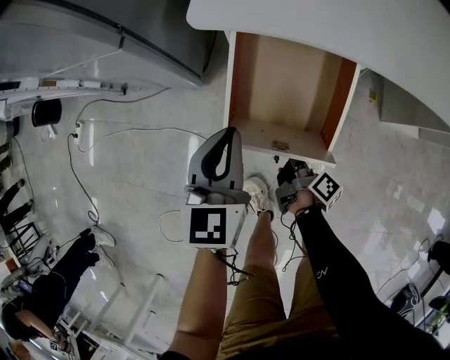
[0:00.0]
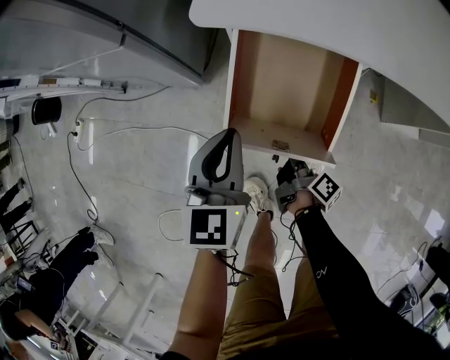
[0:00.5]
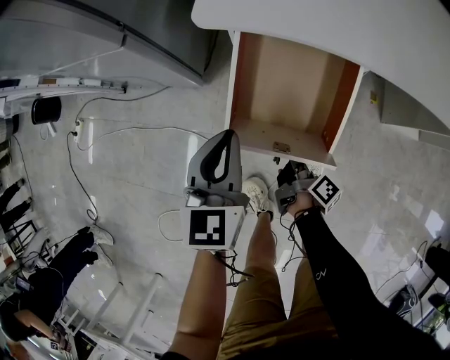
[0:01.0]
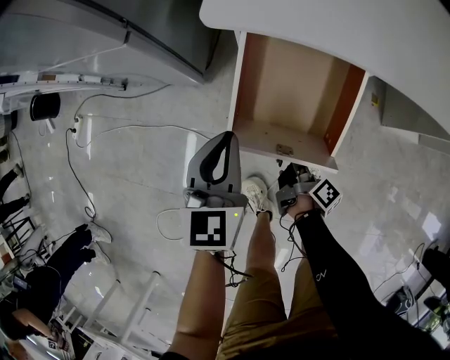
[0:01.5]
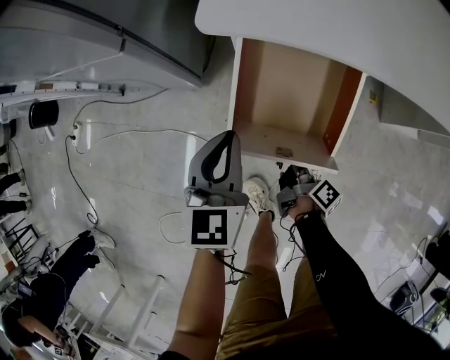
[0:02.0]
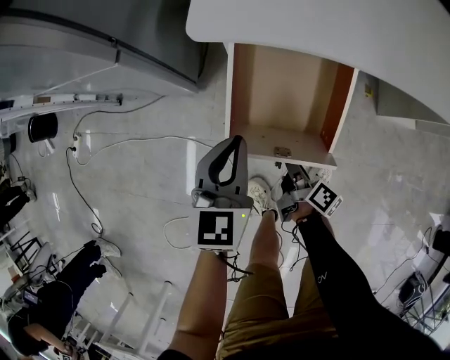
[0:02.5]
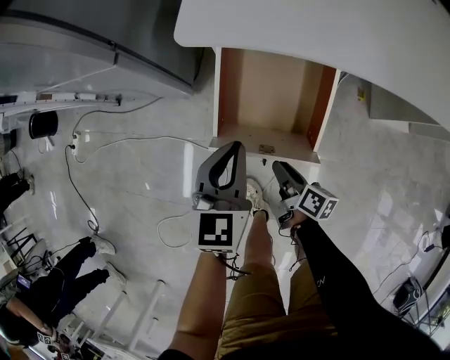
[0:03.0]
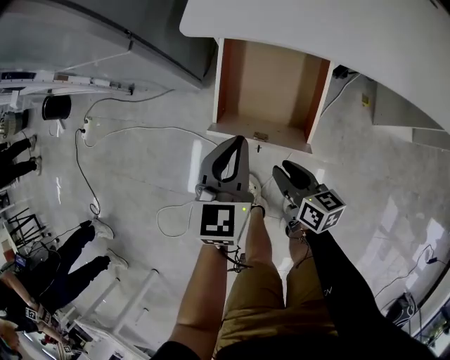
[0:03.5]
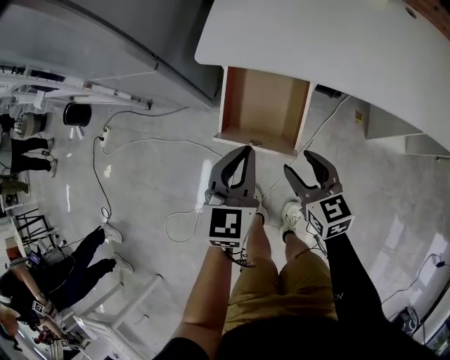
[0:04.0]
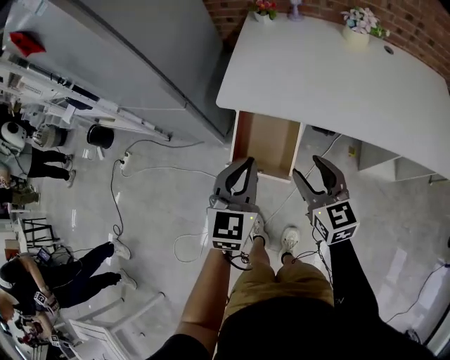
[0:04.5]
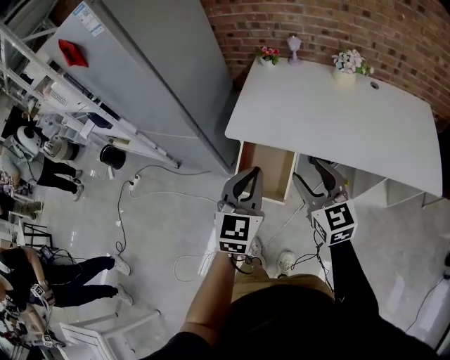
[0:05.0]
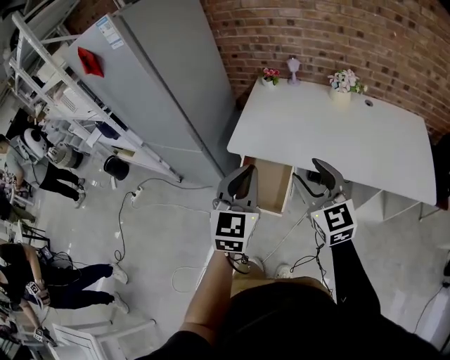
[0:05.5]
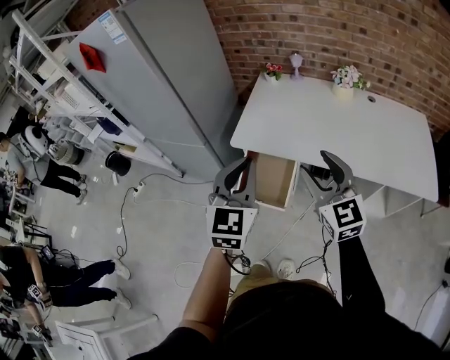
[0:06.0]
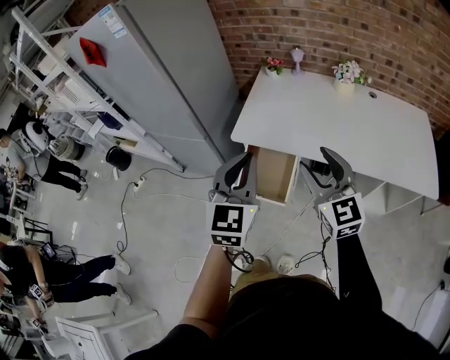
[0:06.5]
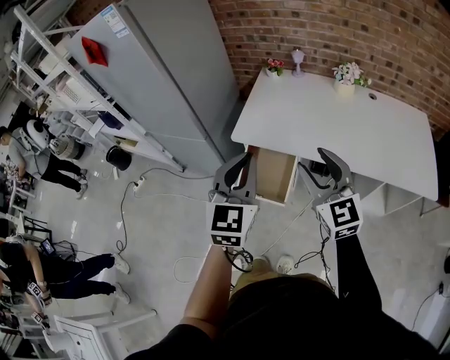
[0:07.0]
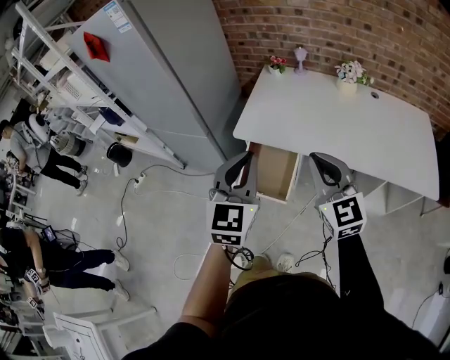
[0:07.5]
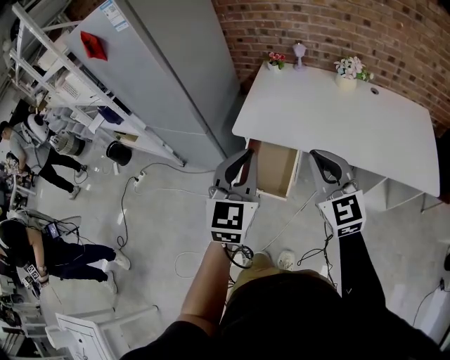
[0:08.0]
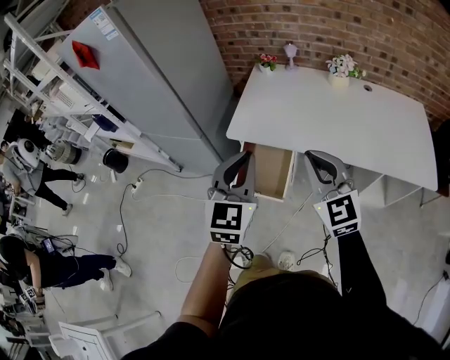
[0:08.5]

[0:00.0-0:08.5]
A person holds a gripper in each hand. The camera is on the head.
0:00.0 to 0:02.0: The grippers make only small movements.
0:02.0 to 0:04.0: The left gripper is displaced upward, to the right and backward by roughly 20 cm. Meanwhile the right gripper goes roughly 25 cm upward, rolls counterclockwise, seen from behind, by about 80 degrees, and opens up.
0:04.0 to 0:06.5: Both grippers travel together upward, about 40 cm. The right gripper changes its angle by roughly 30 degrees.
0:06.5 to 0:08.5: The right gripper closes up.

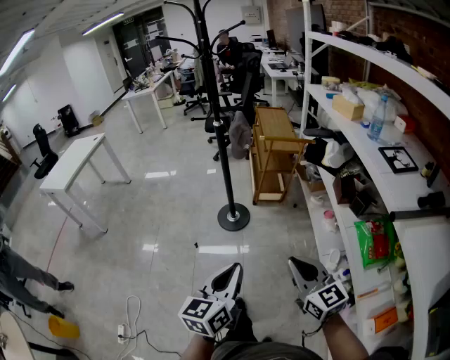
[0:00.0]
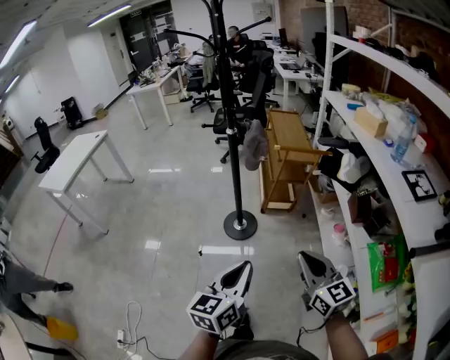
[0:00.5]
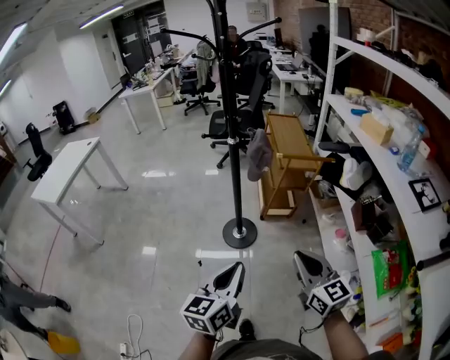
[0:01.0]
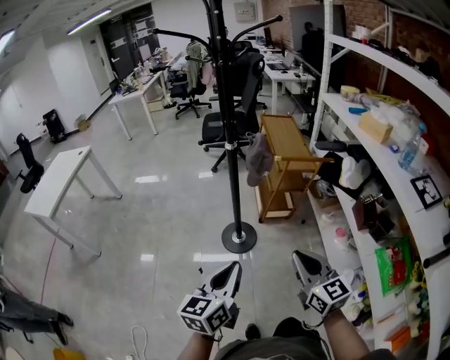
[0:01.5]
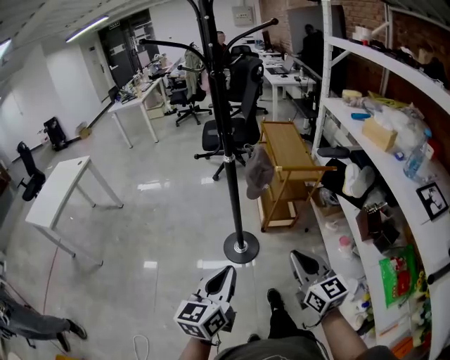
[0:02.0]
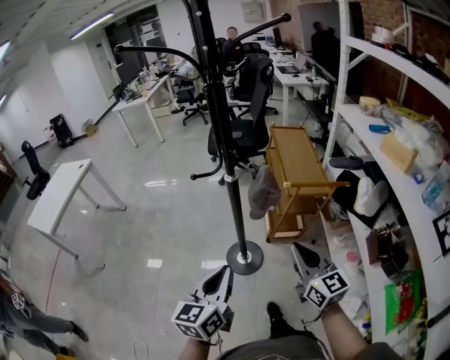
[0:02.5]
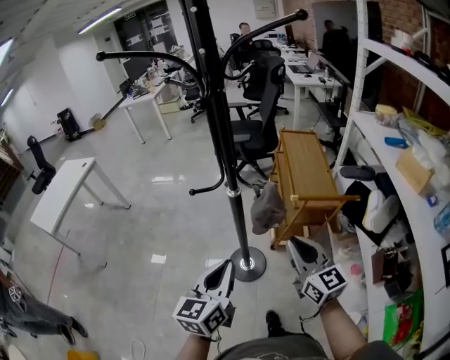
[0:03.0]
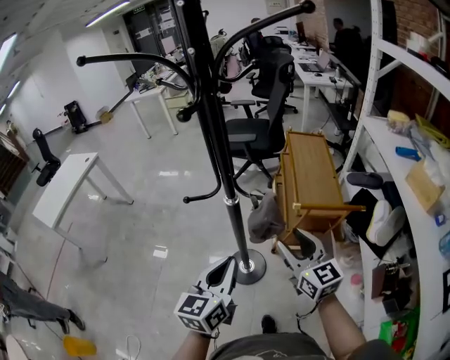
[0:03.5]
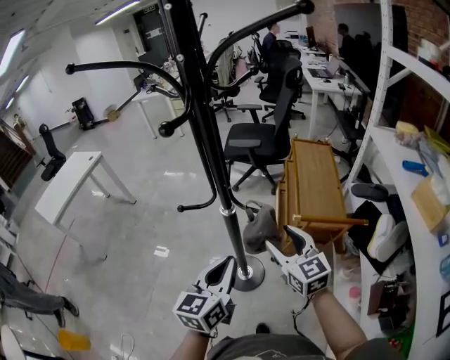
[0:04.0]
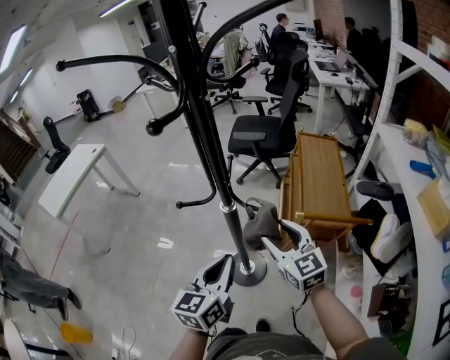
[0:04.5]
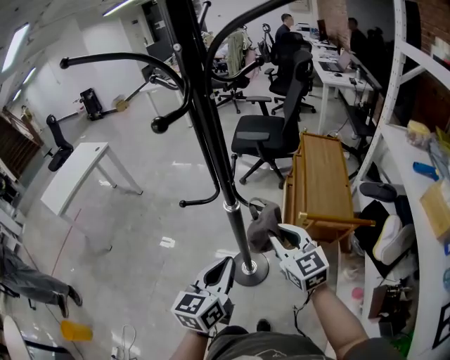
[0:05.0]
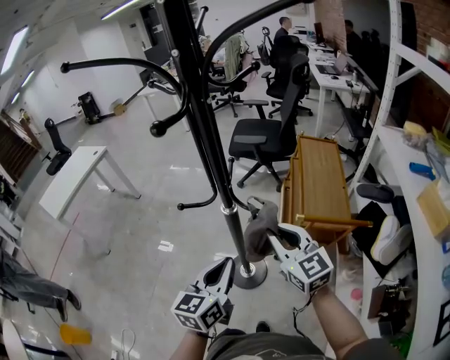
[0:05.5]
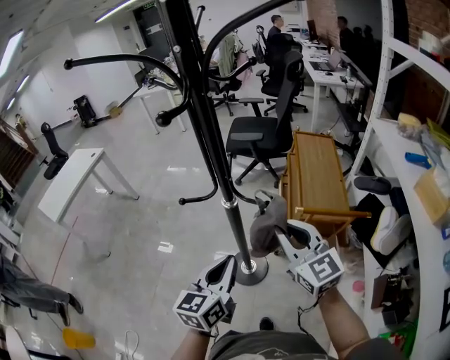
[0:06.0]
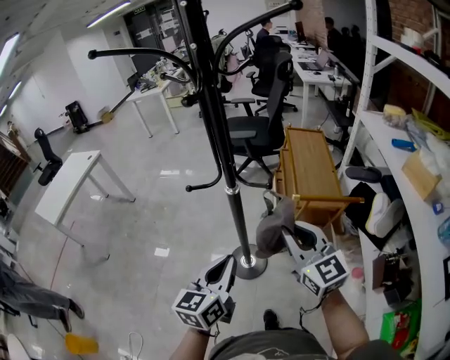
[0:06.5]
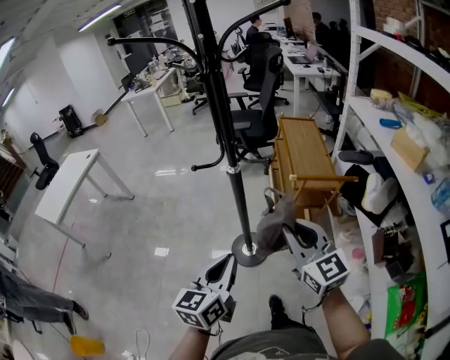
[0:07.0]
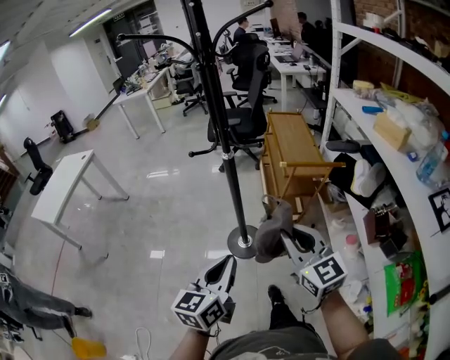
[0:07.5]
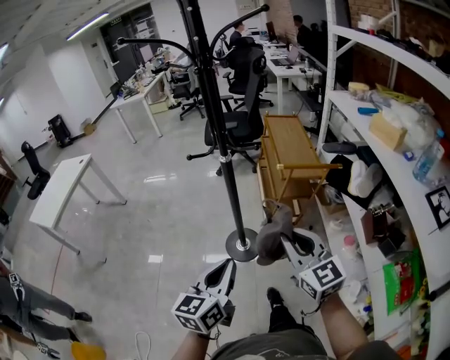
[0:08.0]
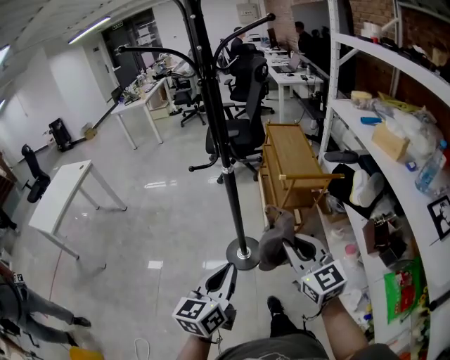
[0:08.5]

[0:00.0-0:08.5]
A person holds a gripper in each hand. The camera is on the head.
0:00.0 to 0:02.0: The two grippers go about 30 cm forward.
0:02.0 to 0:04.0: The two grippers go approximately 30 cm forward. The right gripper opens.
0:04.0 to 0:06.5: The left gripper moves backward, roughly 5 cm; the right gripper shifts roughly 10 cm backward and upward, and closes up.
0:06.5 to 0:08.5: The two grippers go roughly 15 cm backward.

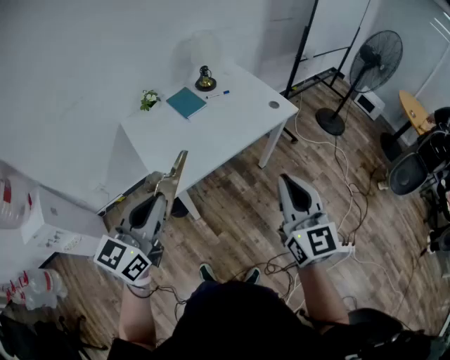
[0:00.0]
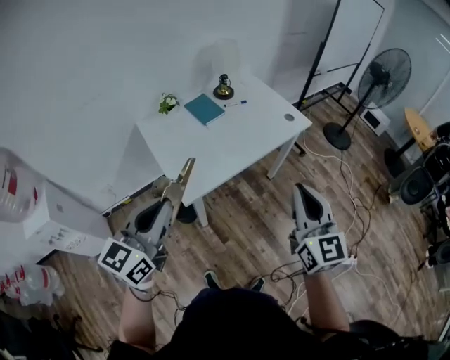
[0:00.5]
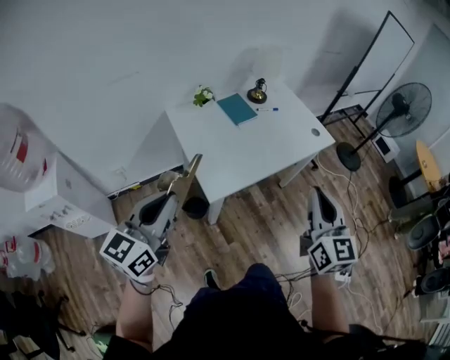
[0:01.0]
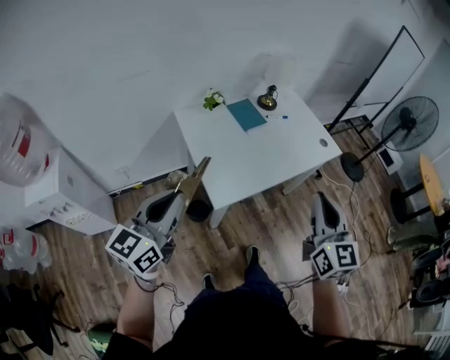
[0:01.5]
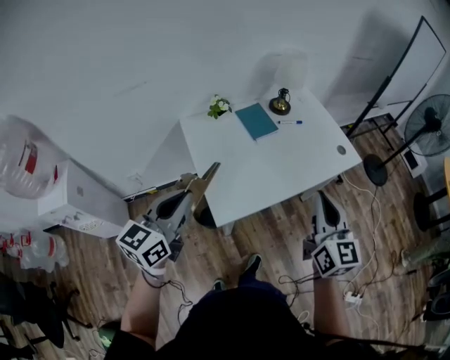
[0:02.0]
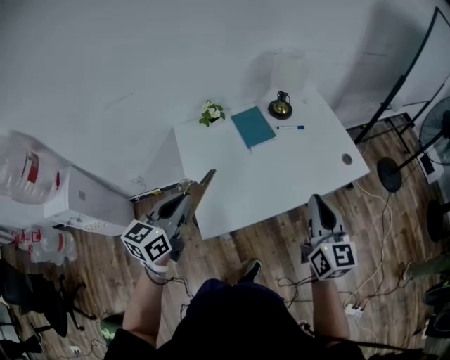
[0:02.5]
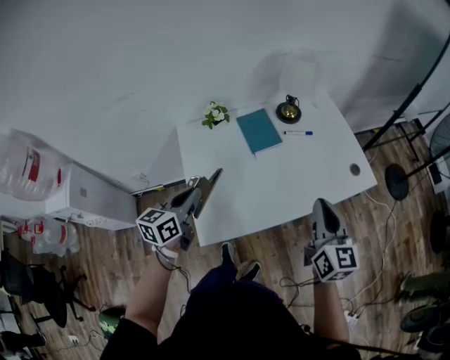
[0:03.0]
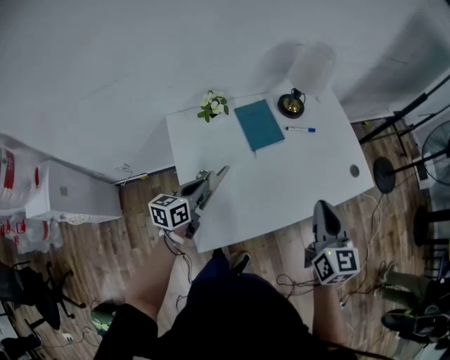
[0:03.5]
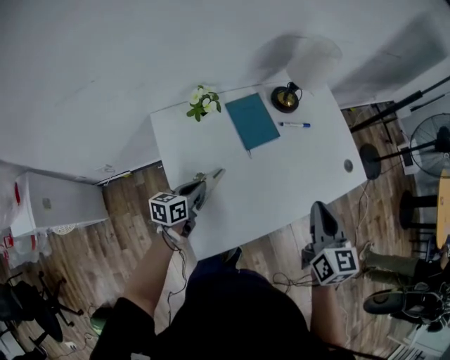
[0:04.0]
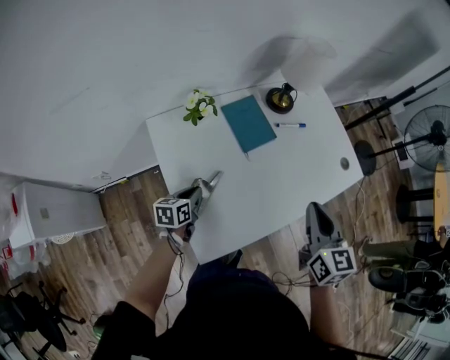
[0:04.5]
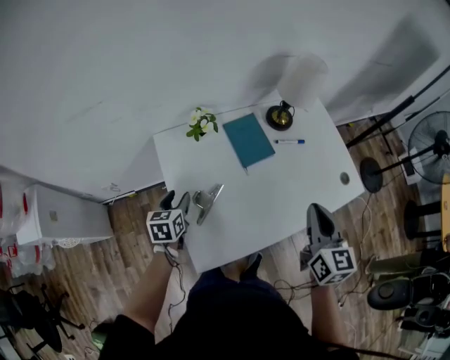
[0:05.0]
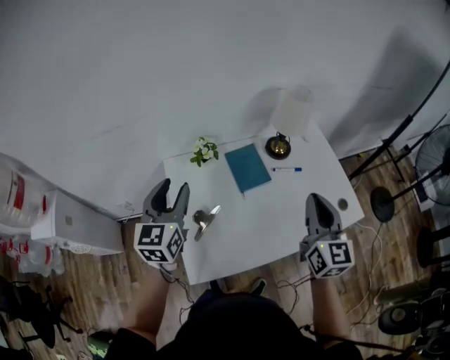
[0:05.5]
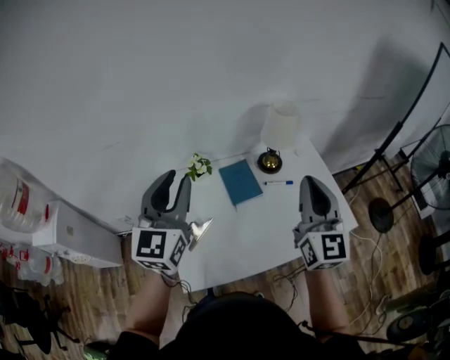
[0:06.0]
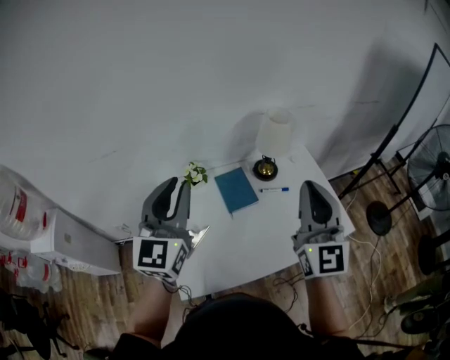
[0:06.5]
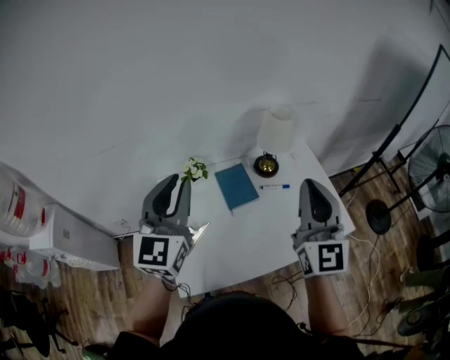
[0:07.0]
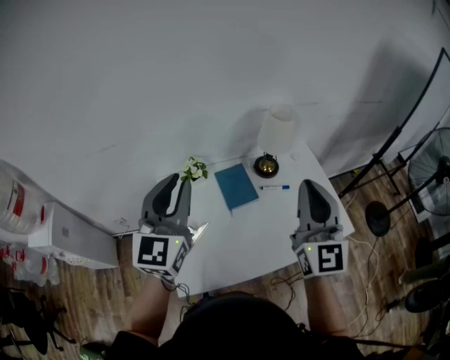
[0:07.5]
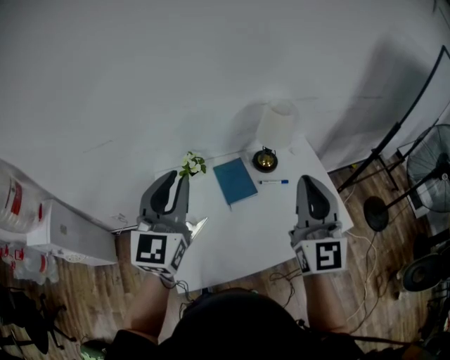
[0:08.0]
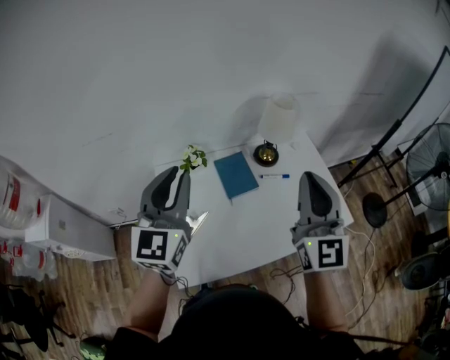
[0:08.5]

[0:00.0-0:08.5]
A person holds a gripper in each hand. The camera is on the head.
0:00.0 to 0:02.0: The left gripper shifts roughly 20 cm to the left and forward; the right gripper heads forward and to the left, covering about 20 cm.
0:02.0 to 0:04.0: The right gripper heads forward and downward, covering some 25 cm, and rotates approximately 20 degrees. Meanwhile the left gripper moves downward and forward, approximately 40 cm, and turns by some 40 degrees.
0:04.0 to 0:06.5: The left gripper is displaced upward by approximately 50 cm, tilts its fingers some 30 degrees upward, and opens, then closes once more; the right gripper goes roughly 25 cm upward, and tilts its fingers approximately 40 degrees upward.
0:06.5 to 0:08.5: The grippers move only a little.

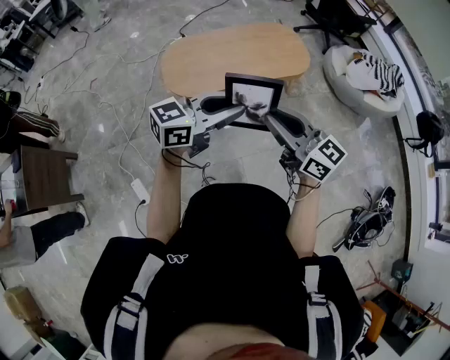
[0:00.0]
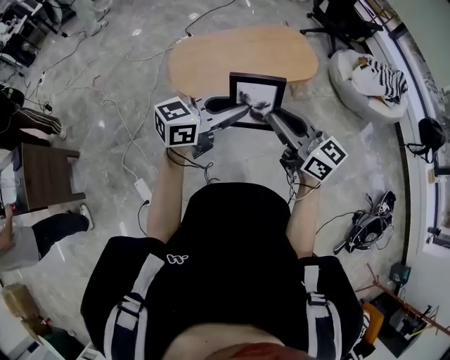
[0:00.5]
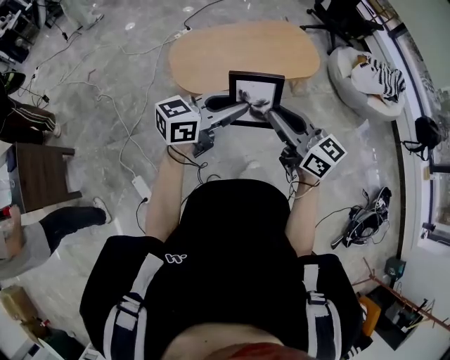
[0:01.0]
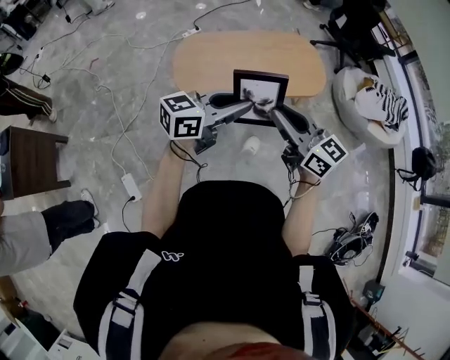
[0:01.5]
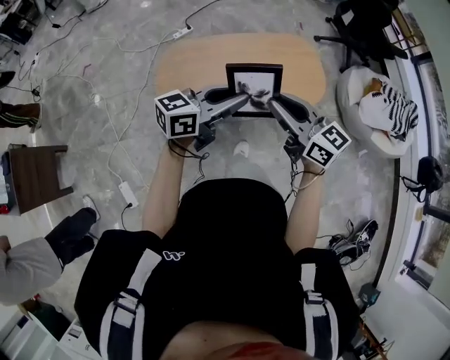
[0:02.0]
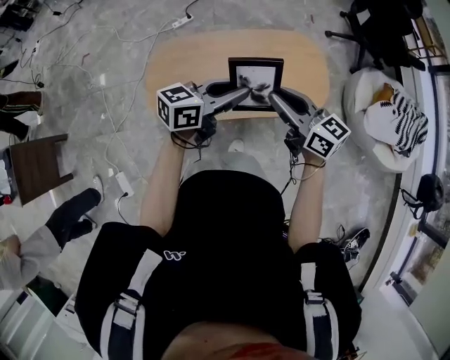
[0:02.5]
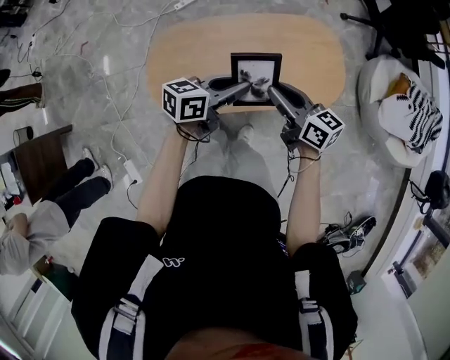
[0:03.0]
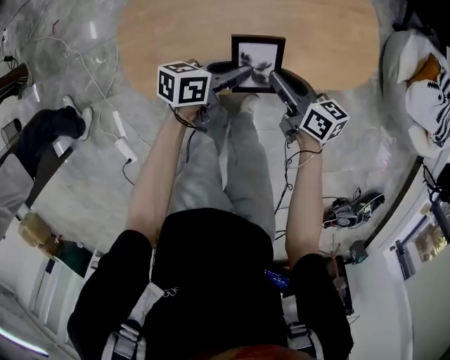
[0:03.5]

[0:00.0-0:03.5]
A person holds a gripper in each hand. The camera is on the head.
0:00.0 to 0:02.0: The two grippers go some 35 cm forward.
0:02.0 to 0:03.5: The two grippers go approximately 40 cm downward and forward. The right gripper rotates approximately 40 degrees. Meanwhile the left gripper swivels approximately 40 degrees.
